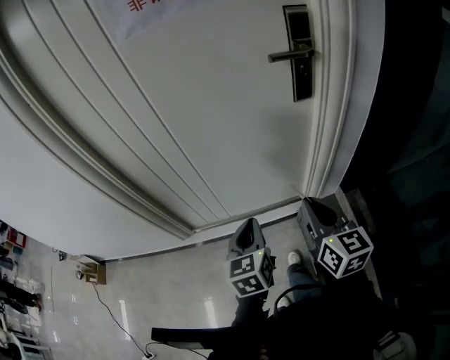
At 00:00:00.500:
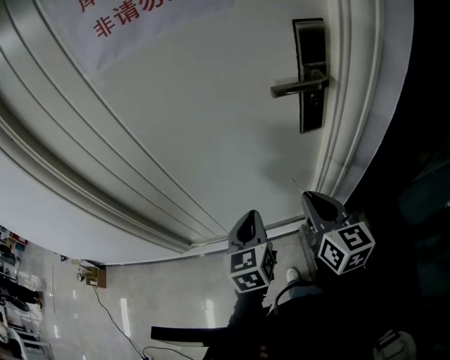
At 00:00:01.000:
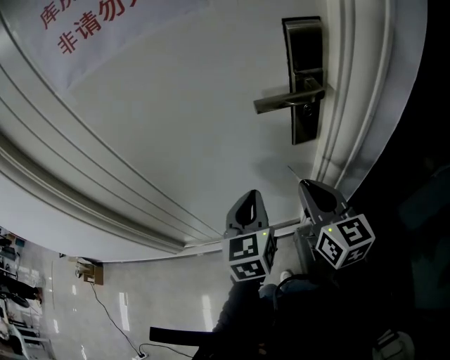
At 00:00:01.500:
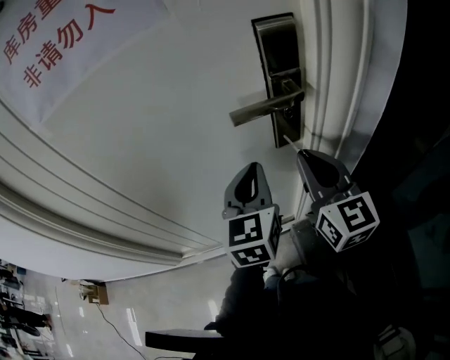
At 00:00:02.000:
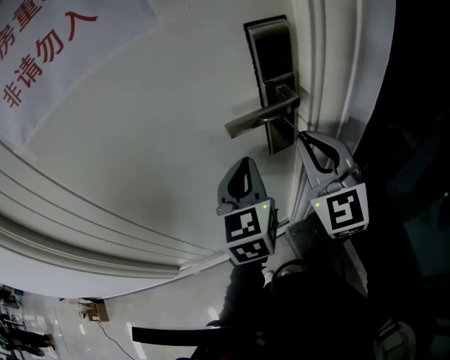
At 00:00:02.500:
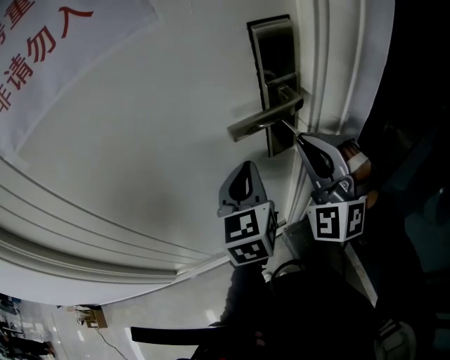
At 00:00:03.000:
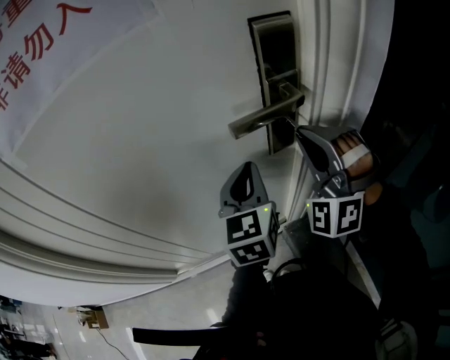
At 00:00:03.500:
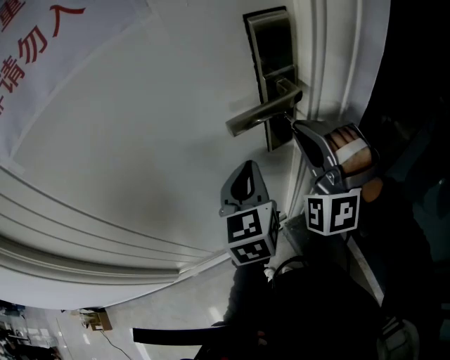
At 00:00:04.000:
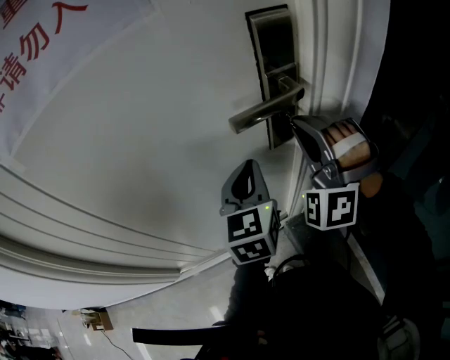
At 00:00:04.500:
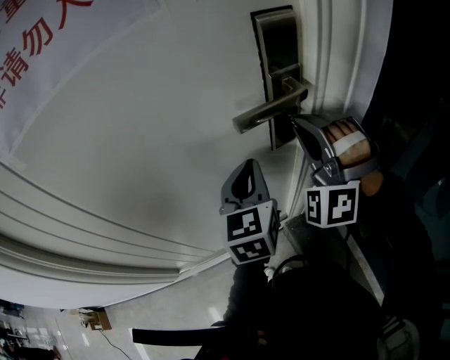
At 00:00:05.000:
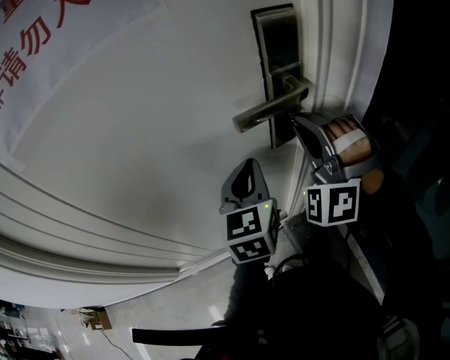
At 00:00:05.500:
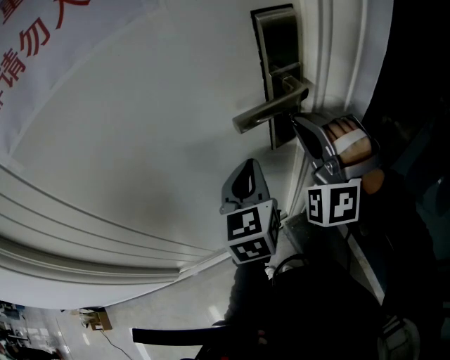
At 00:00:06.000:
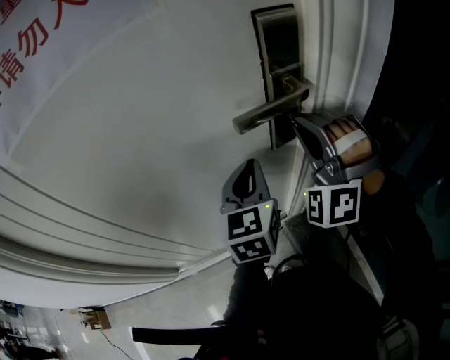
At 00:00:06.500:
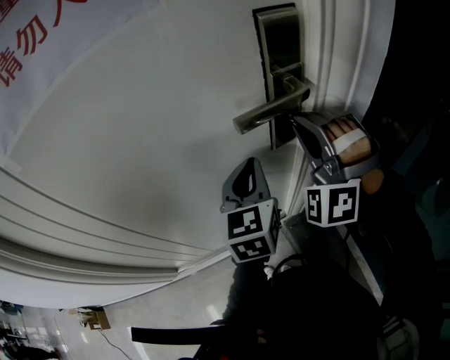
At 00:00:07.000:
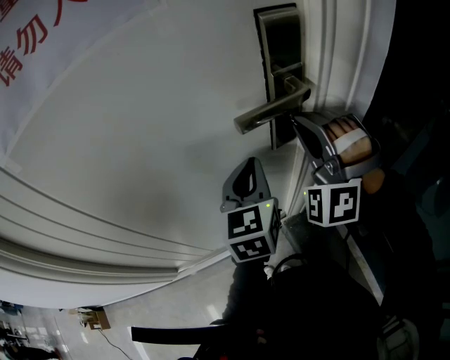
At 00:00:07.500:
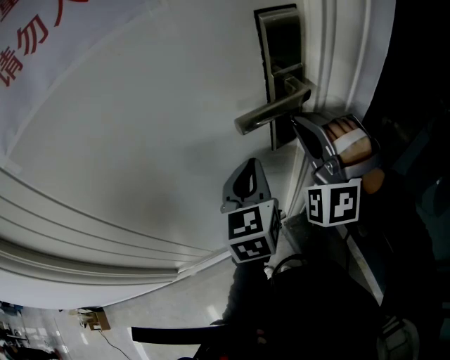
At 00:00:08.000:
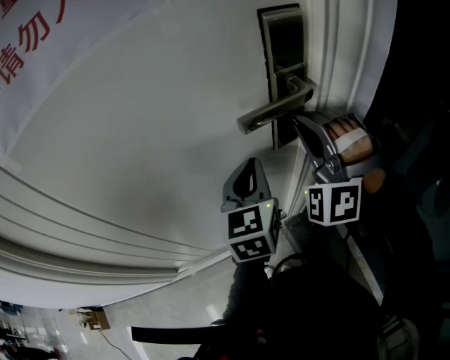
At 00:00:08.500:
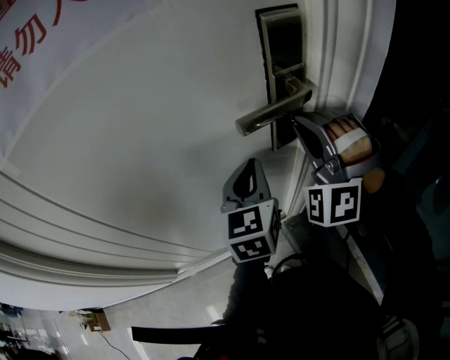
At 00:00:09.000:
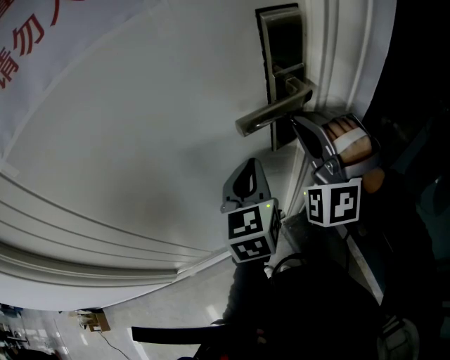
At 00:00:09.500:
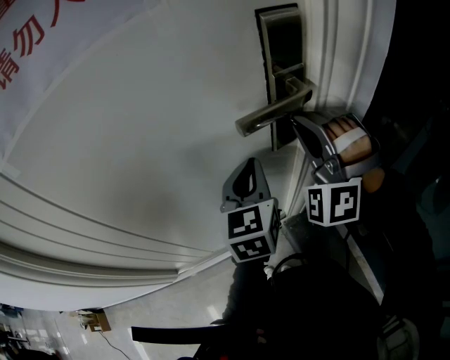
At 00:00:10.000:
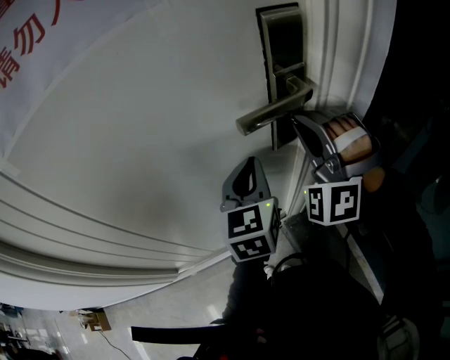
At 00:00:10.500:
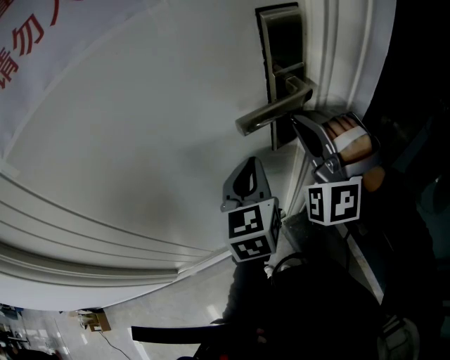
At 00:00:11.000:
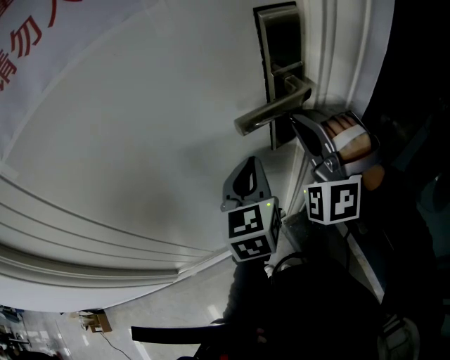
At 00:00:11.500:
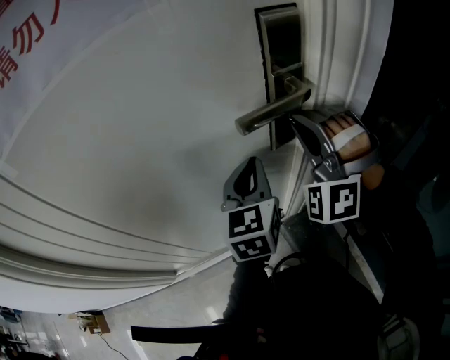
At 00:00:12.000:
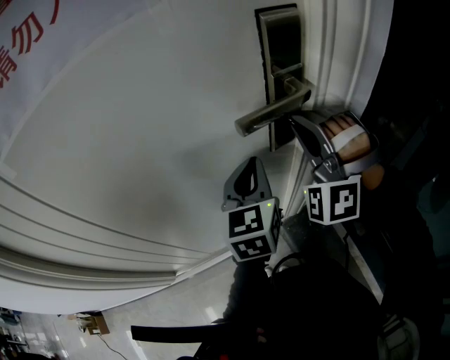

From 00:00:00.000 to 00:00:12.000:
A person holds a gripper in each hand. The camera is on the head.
From 00:00:00.000 to 00:00:02.000: The right gripper is displaced forward, upward and to the right by about 35 cm, and rolls counterclockwise, seen from behind, by roughly 40 degrees, while the left gripper is displaced forward, to the right and upward by about 35 cm, and rotates about 20 degrees.
From 00:00:02.000 to 00:00:04.000: The right gripper twists roughly 60 degrees counterclockwise, seen from behind.
From 00:00:04.000 to 00:00:10.000: The two grippers keep their place.
From 00:00:10.000 to 00:00:12.000: Both grippers stay about where they are.

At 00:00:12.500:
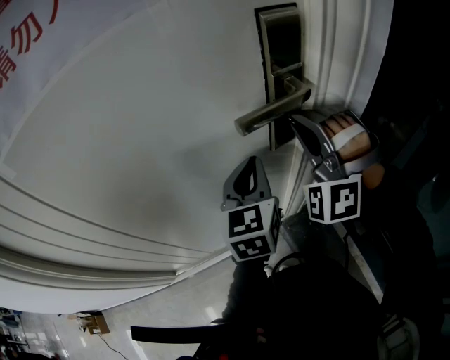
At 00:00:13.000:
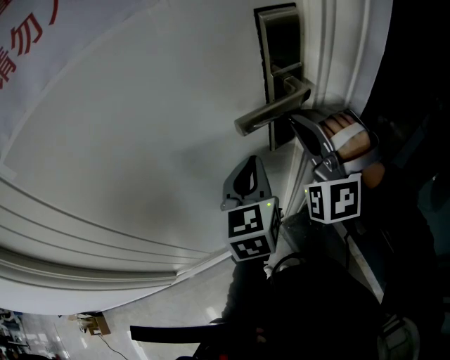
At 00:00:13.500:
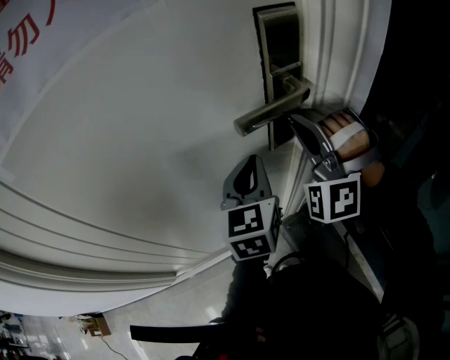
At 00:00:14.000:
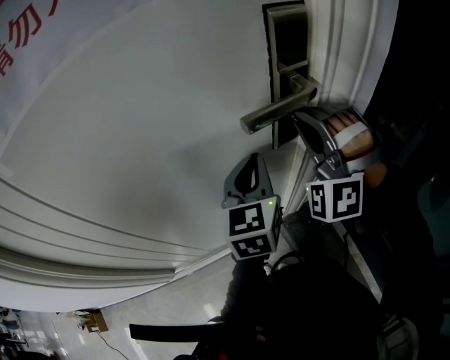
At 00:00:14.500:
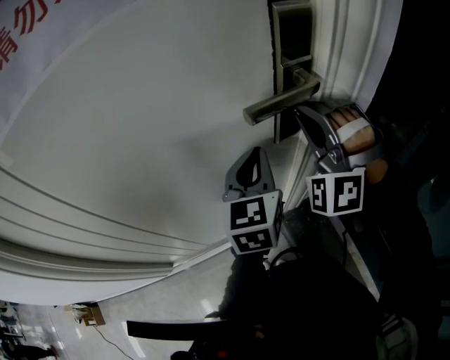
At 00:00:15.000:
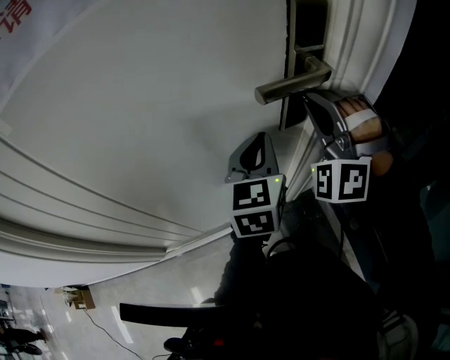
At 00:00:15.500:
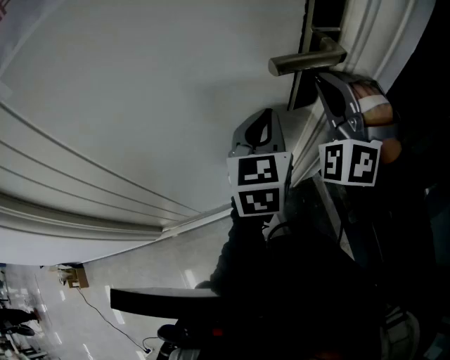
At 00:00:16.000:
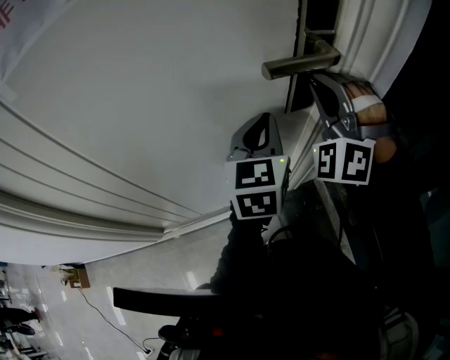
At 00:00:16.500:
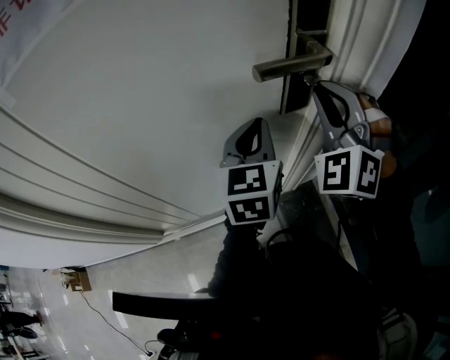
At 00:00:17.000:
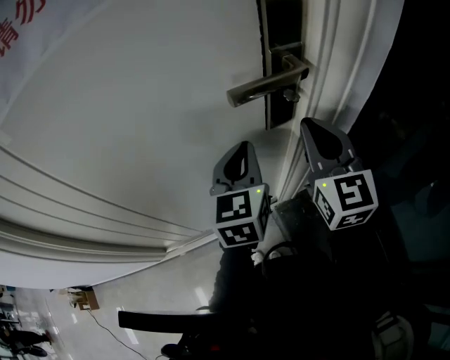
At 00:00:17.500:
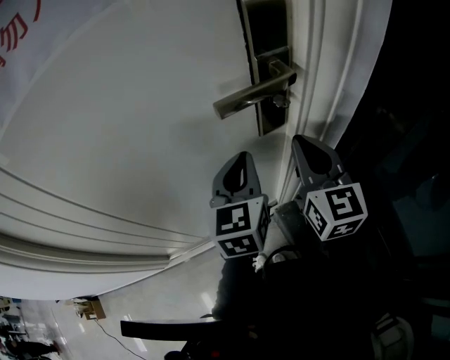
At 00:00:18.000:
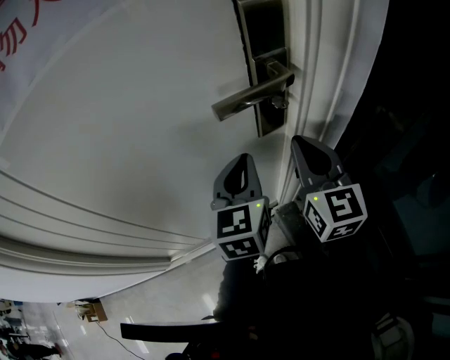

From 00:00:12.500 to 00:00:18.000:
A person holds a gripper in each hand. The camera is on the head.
From 00:00:12.500 to 00:00:16.000: Neither gripper changes place.
From 00:00:16.000 to 00:00:18.000: The right gripper shifts about 5 cm backward, and twists some 80 degrees clockwise, seen from behind.

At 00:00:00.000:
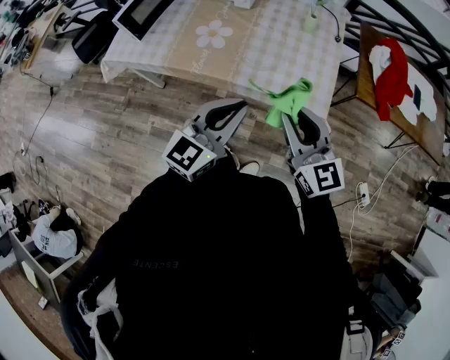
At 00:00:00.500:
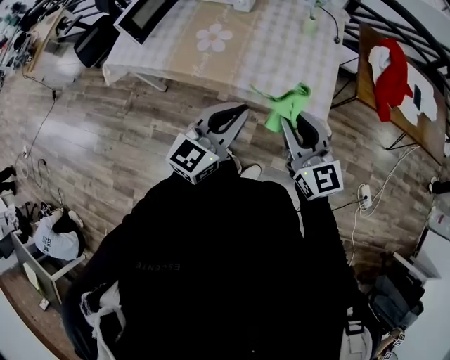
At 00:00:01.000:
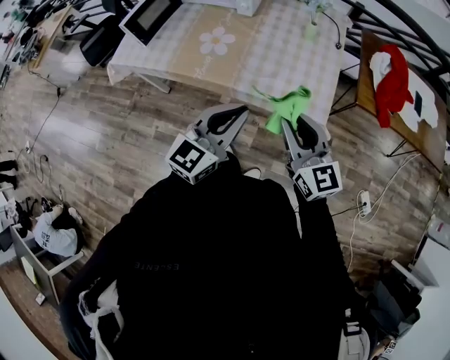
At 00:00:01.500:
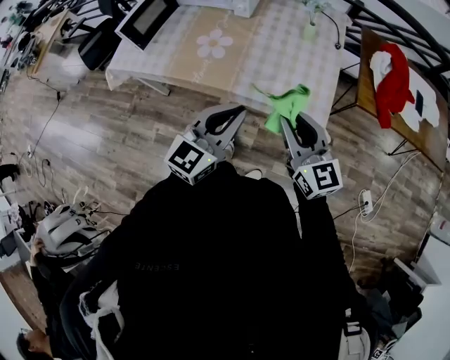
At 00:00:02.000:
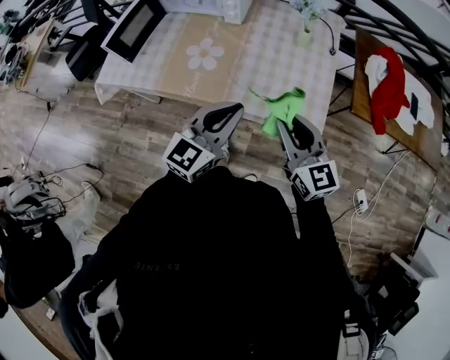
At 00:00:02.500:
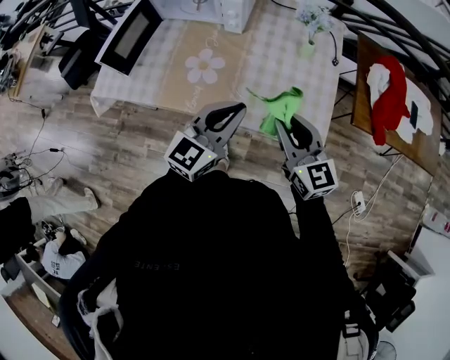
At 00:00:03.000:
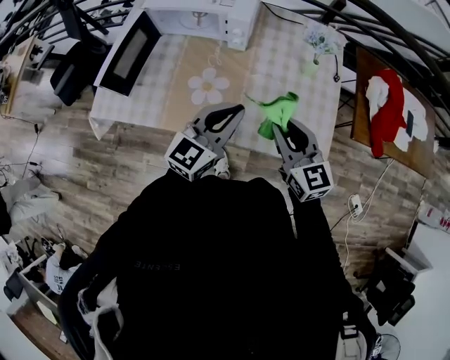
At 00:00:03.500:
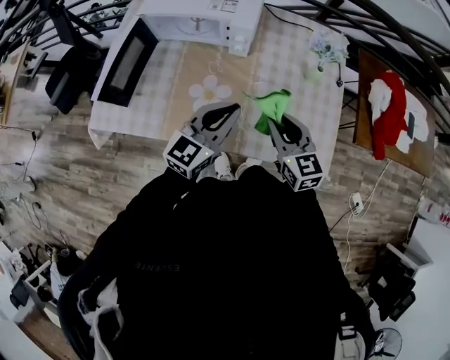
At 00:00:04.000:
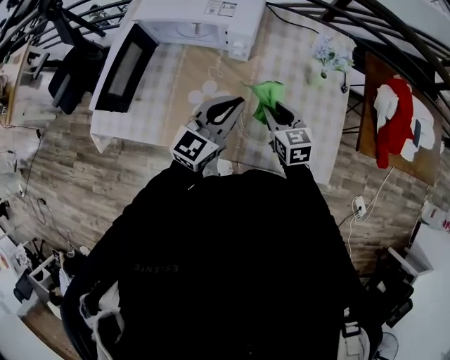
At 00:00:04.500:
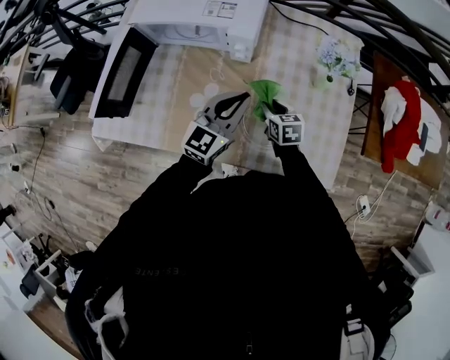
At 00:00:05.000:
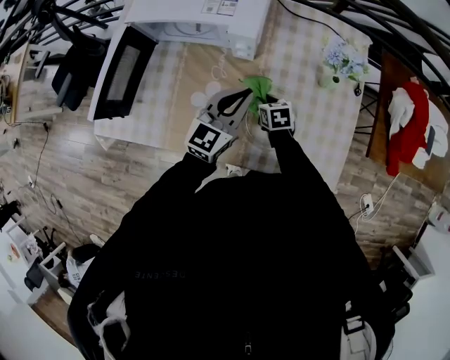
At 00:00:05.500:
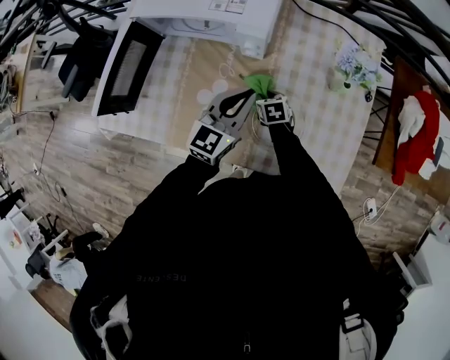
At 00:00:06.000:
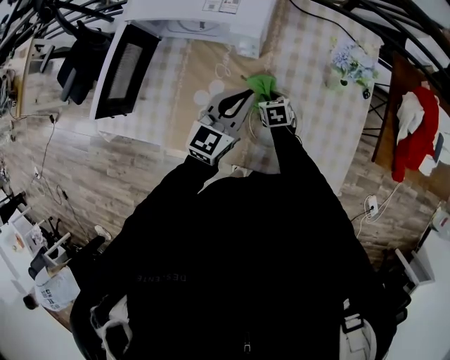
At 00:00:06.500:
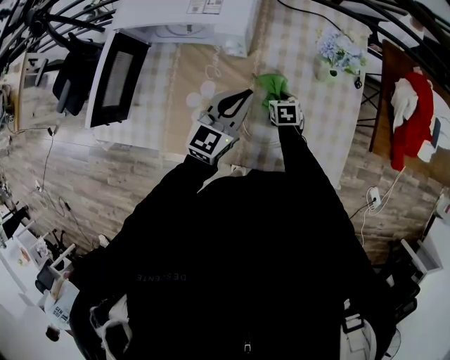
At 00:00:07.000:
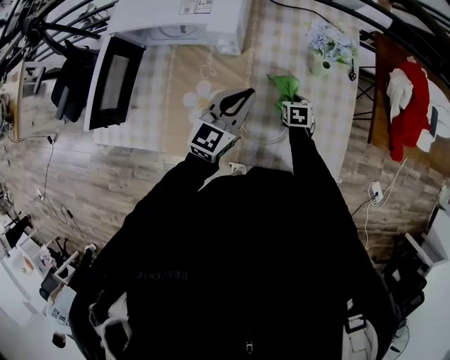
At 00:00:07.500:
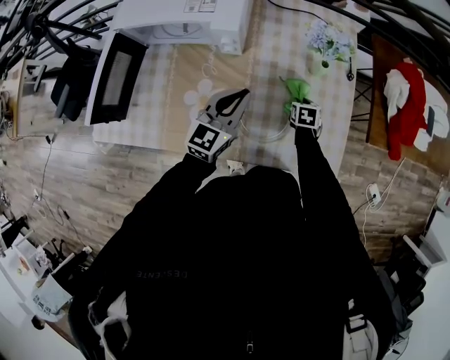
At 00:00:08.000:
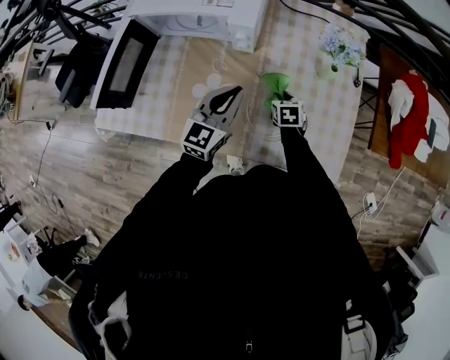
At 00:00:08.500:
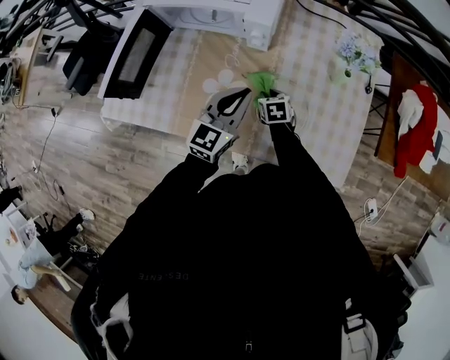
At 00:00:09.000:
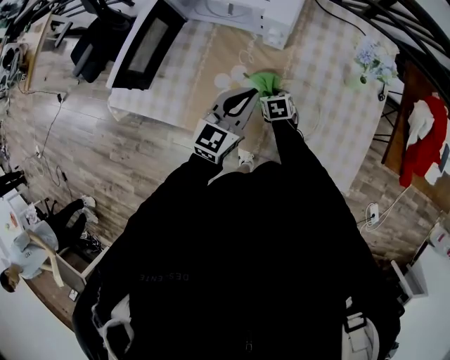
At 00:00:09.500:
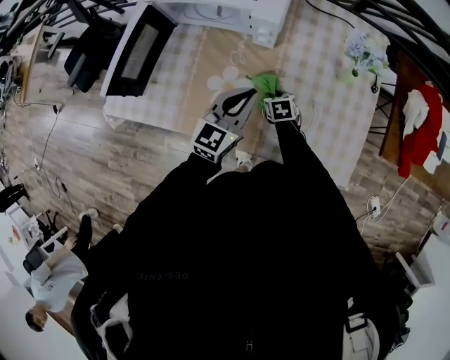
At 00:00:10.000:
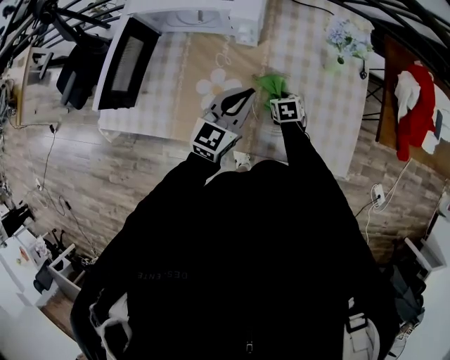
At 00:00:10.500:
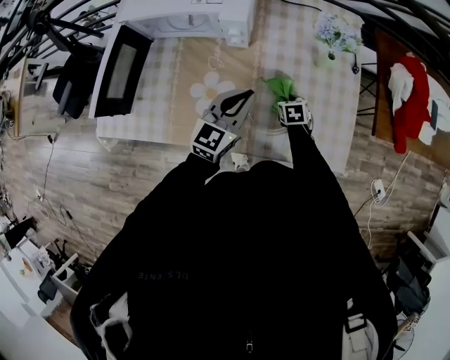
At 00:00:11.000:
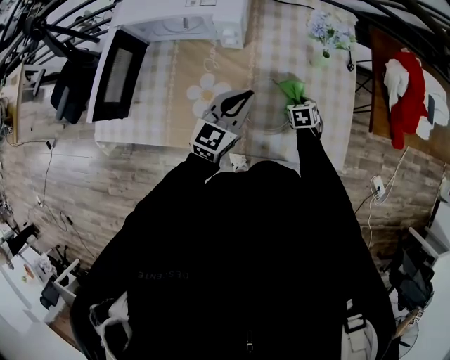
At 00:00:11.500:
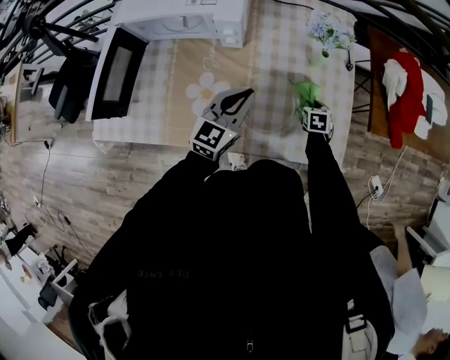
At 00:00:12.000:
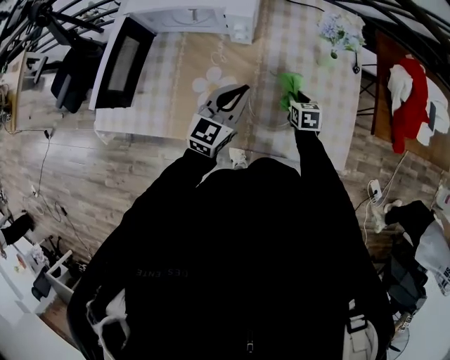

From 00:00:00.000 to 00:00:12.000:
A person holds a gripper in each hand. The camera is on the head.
From 00:00:00.000 to 00:00:02.000: The grippers both shift forward by roughly 10 cm.
From 00:00:02.000 to 00:00:04.000: The left gripper is displaced forward and to the left by about 30 cm; the right gripper shifts about 35 cm forward, downward and to the left, and turns by roughly 30 degrees.
From 00:00:04.000 to 00:00:06.000: The right gripper shifts some 20 cm downward and forward, and swivels approximately 30 degrees. The left gripper moves forward and downward, about 10 cm.
From 00:00:06.000 to 00:00:08.000: The right gripper moves to the right, some 5 cm.
From 00:00:08.000 to 00:00:10.000: The right gripper goes to the left and returns, about 15 cm each way.
From 00:00:10.000 to 00:00:12.000: The right gripper travels to the right by approximately 5 cm.
